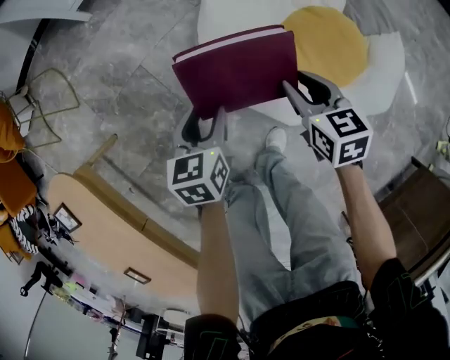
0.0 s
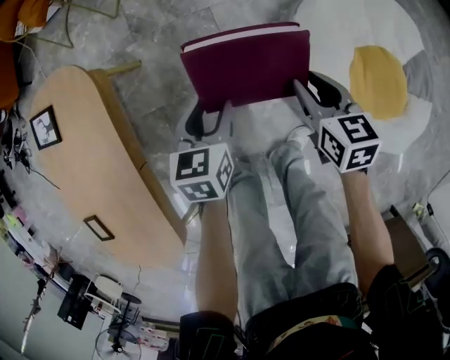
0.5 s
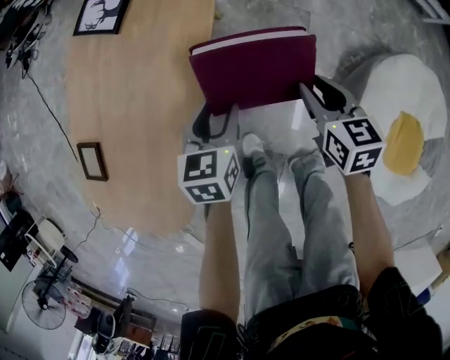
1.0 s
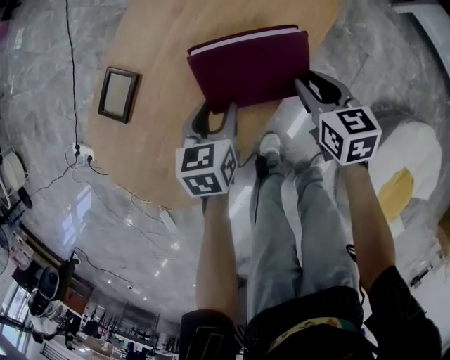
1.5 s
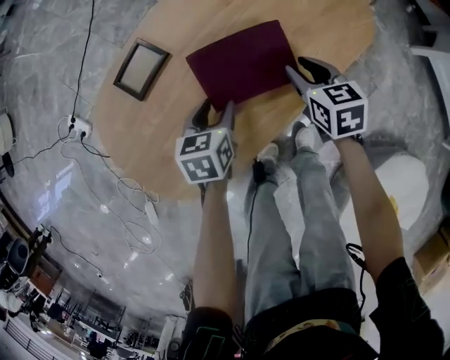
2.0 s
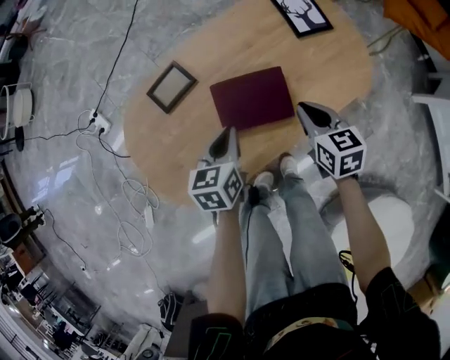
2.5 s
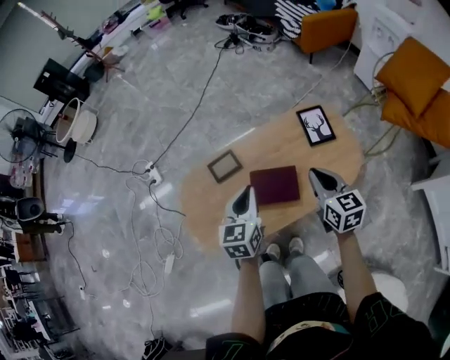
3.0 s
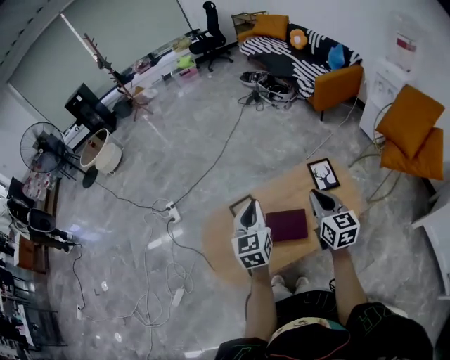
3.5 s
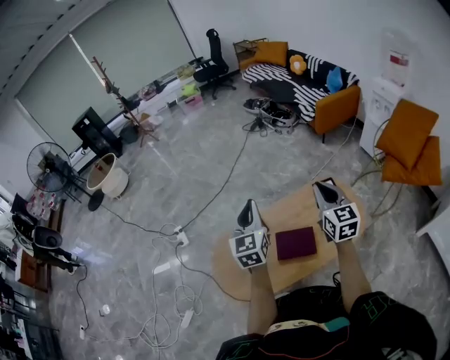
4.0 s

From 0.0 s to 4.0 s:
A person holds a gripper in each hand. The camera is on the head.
From 0.0 s to 2.0 s: Both grippers are carried some 80 cm. The right gripper changes its angle by about 80 degrees, while the left gripper changes its angle by approximately 80 degrees.
From 2.0 s to 4.0 s: Both grippers travel together upward, some 50 cm. The left gripper points its fingers roughly 40 degrees further upward, and closes up, while the right gripper points its fingers approximately 40 degrees further upward, and closes its fingers.

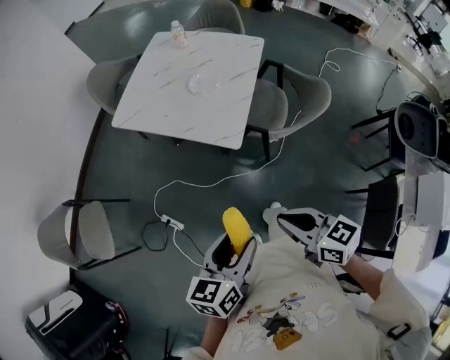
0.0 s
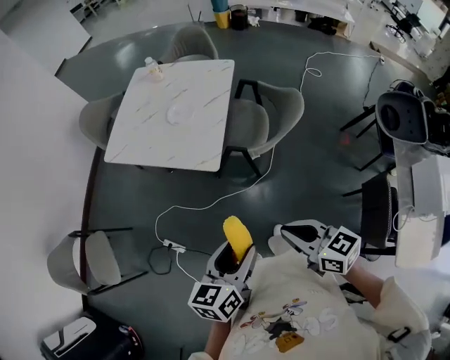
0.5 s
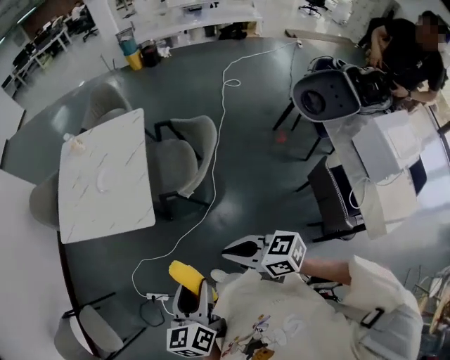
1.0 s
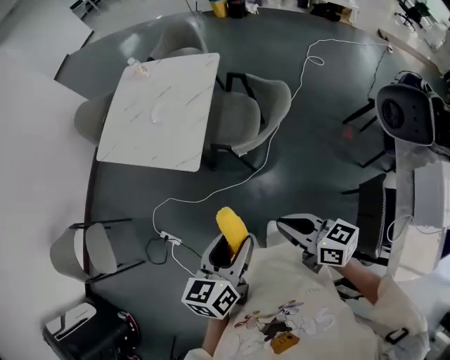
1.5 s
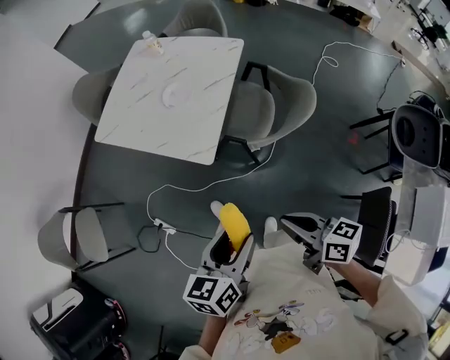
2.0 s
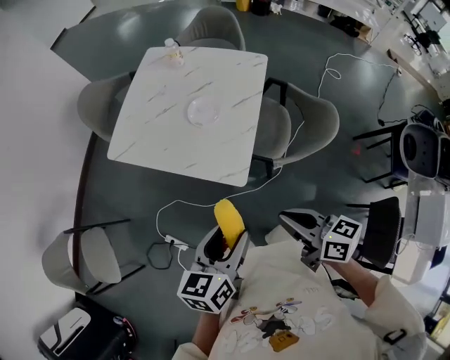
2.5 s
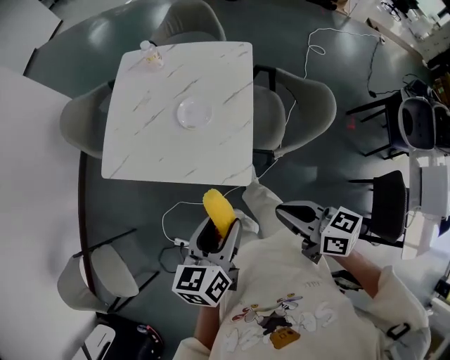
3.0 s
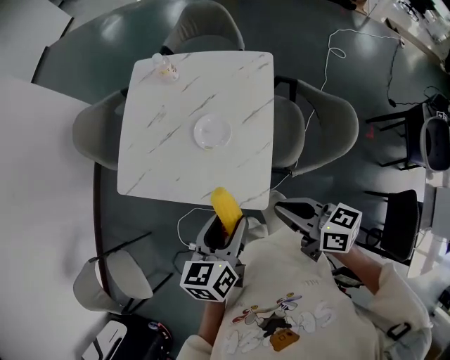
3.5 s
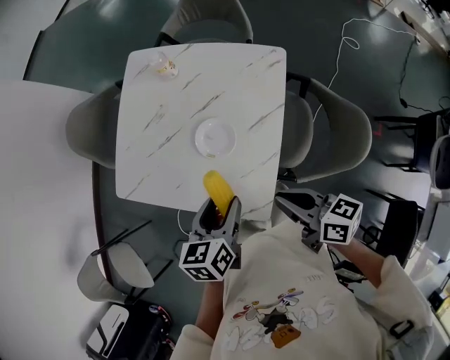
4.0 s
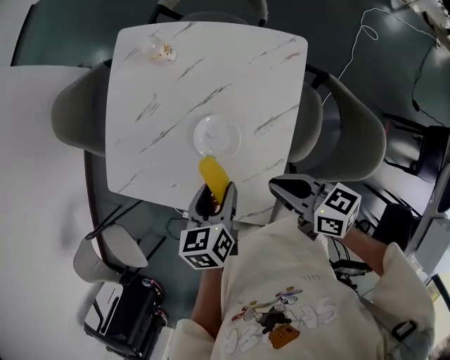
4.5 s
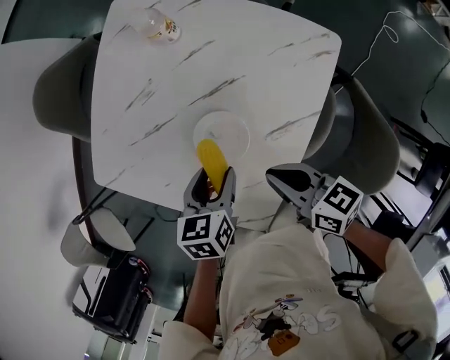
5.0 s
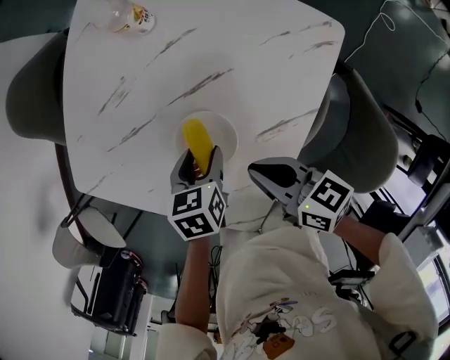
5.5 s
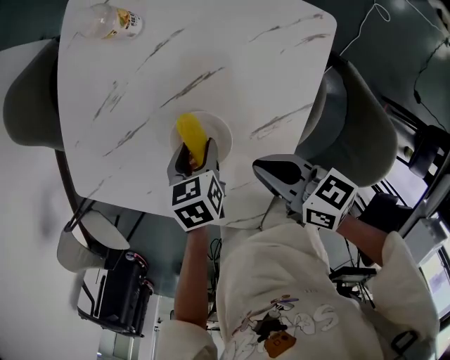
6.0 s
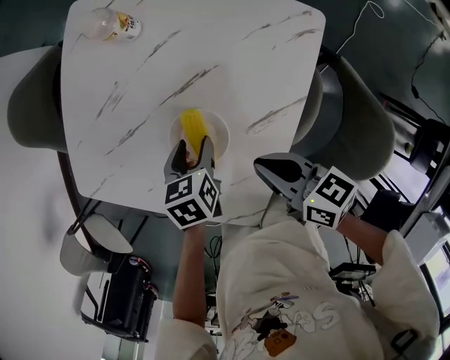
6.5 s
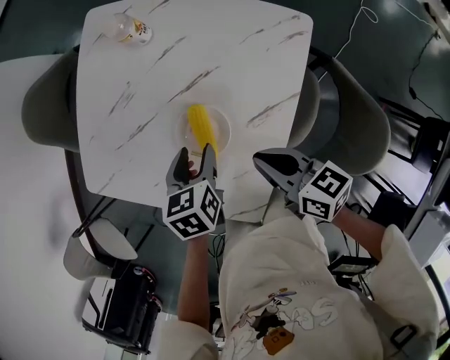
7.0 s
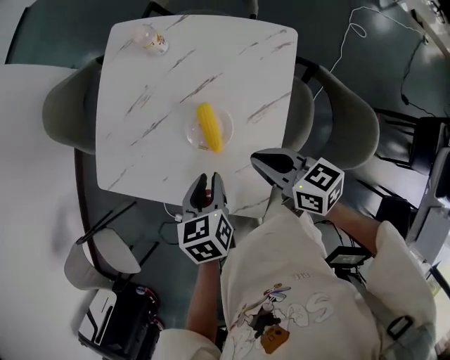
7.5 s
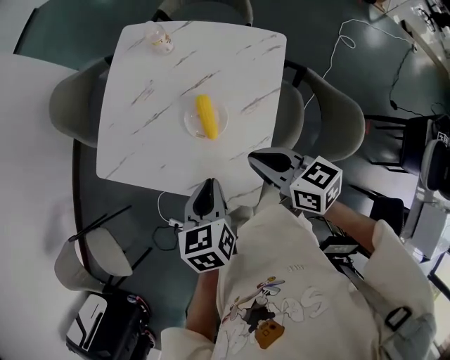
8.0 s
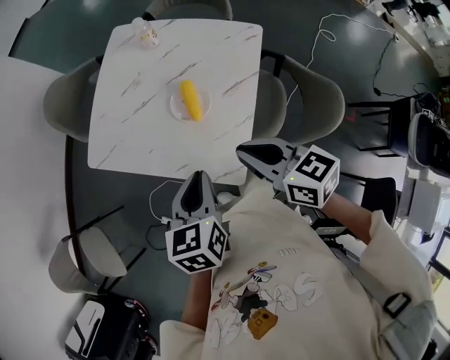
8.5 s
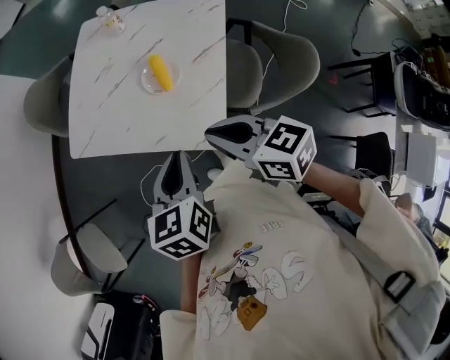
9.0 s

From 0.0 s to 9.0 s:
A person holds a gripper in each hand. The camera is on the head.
From 0.0 s to 2.0 s: Both grippers move to the right, about 15 cm.
From 2.0 s to 4.5 s: The pair of grippers is taken forward, about 50 cm. The left gripper swivels roughly 20 degrees.
From 4.5 s to 7.0 s: Both grippers move downward and forward, roughly 10 cm.
From 7.0 s to 9.0 s: The right gripper travels backward, upward and to the left by roughly 30 cm. Meanwhile the left gripper goes some 35 cm backward and upward, rotates some 20 degrees, and closes.

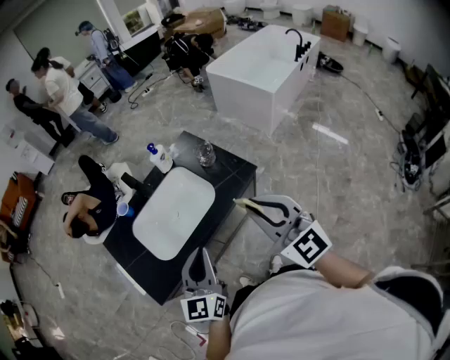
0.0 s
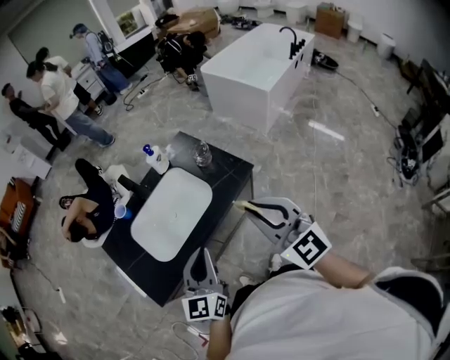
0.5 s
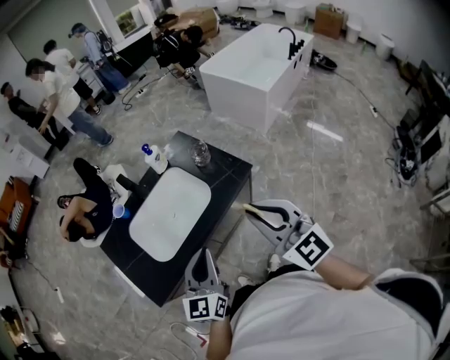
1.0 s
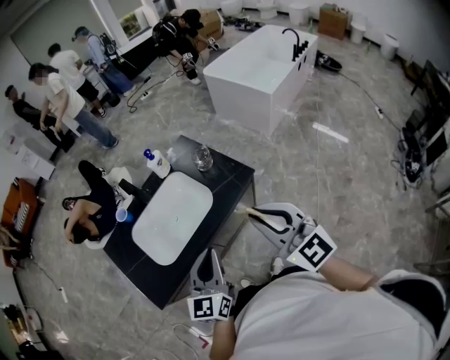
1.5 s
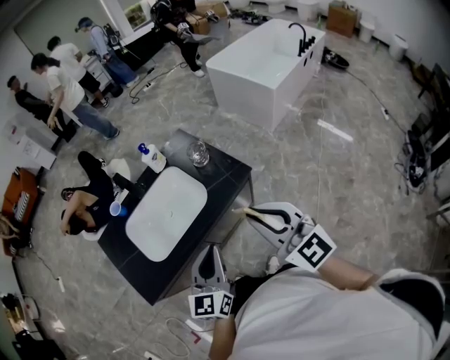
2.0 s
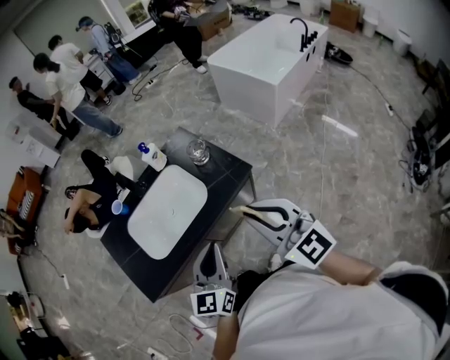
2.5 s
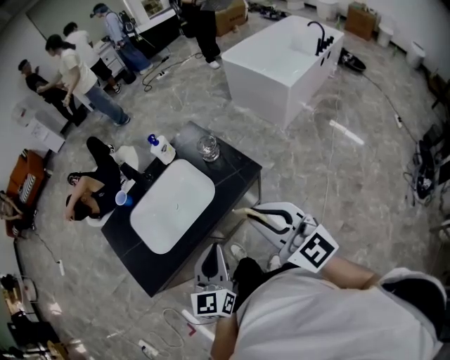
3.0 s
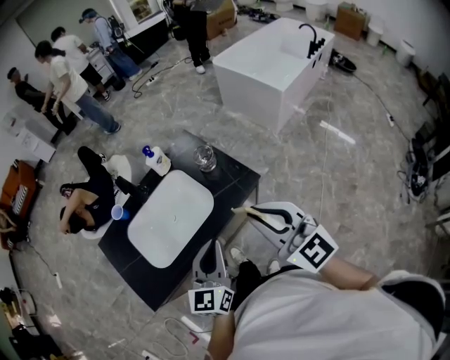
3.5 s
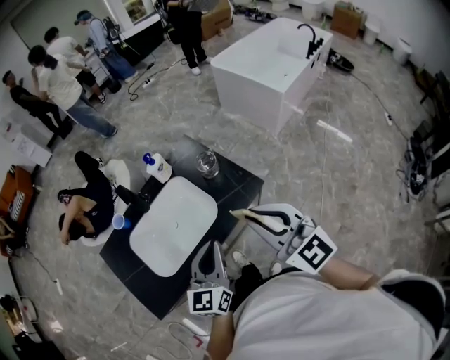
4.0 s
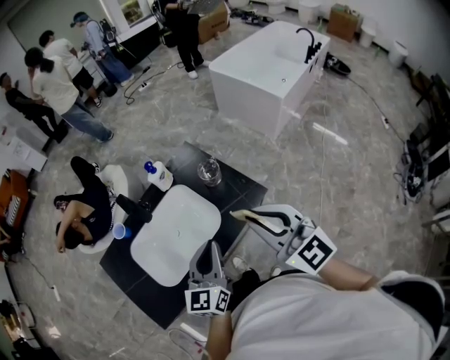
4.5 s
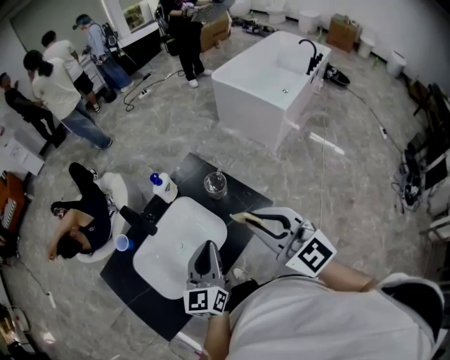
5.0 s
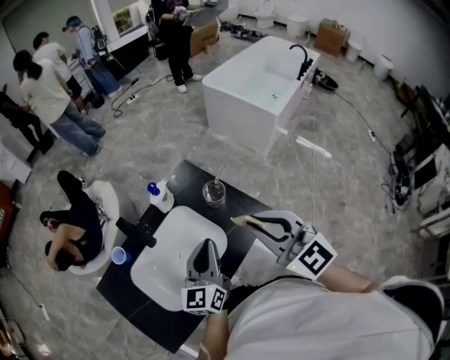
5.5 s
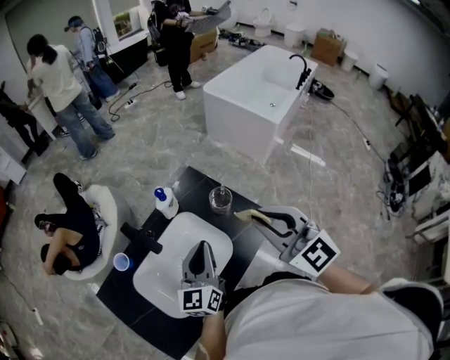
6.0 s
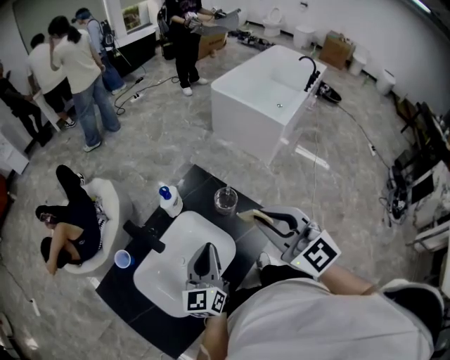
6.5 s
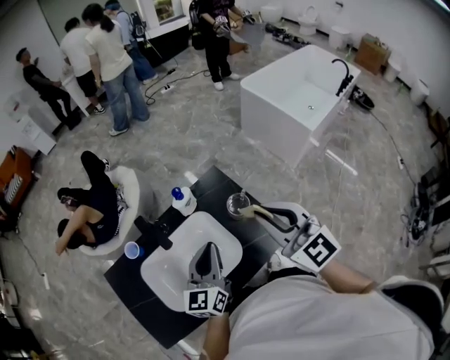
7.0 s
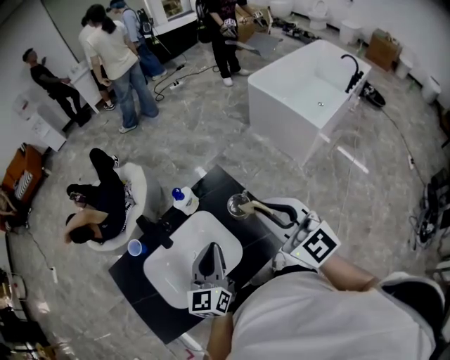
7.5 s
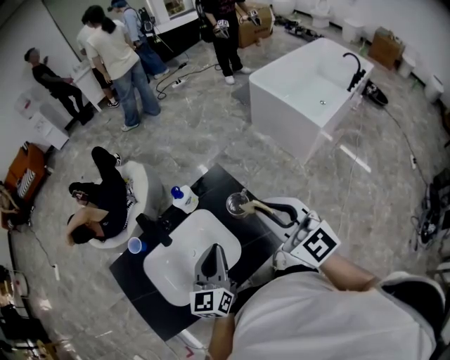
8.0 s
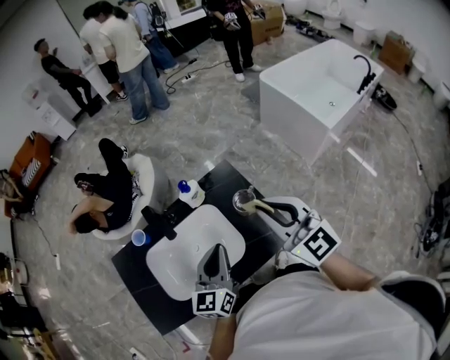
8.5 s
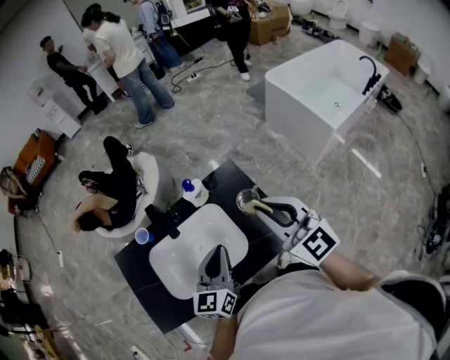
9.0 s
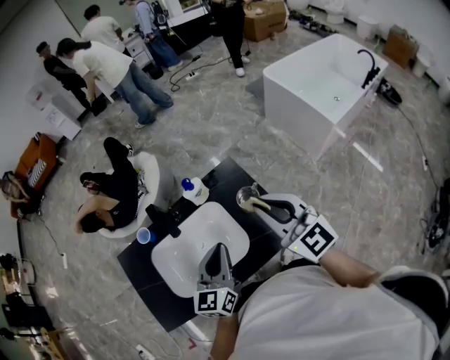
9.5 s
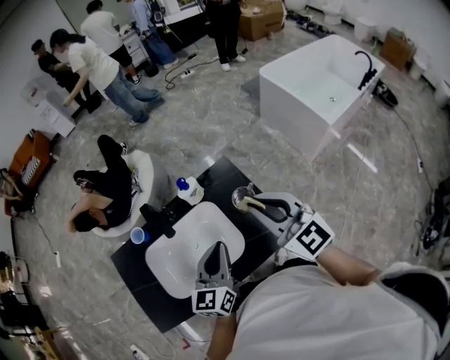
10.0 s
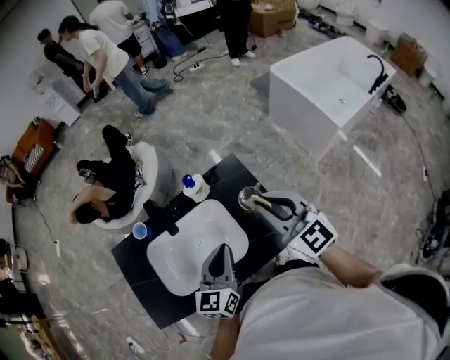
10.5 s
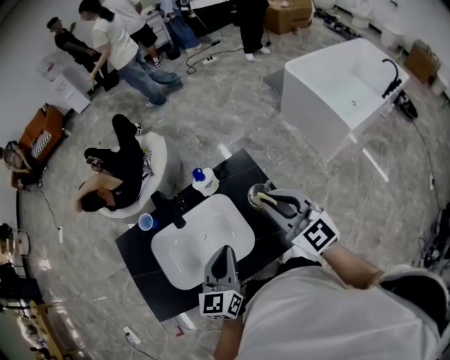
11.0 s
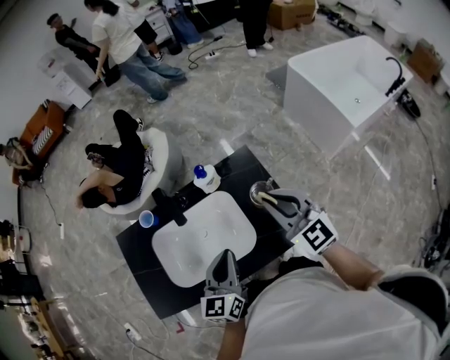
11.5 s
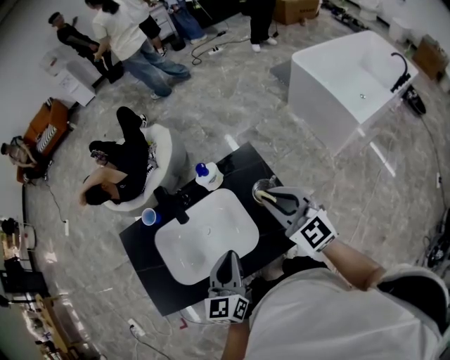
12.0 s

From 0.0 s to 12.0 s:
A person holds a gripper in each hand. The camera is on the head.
From 0.0 s to 2.0 s: The right gripper changes place by some 5 cm. The left gripper is displaced to the right by approximately 5 cm.
From 2.0 s to 4.0 s: Both grippers travel together forward, about 10 cm.
From 4.0 s to 6.0 s: The left gripper goes some 20 cm forward and to the left. The right gripper goes about 15 cm forward.
From 6.0 s to 8.0 s: The right gripper heads forward and to the right, covering about 10 cm.
From 8.0 s to 10.0 s: The grippers move only a little.
From 10.0 s to 12.0 s: The right gripper travels downward by approximately 10 cm.

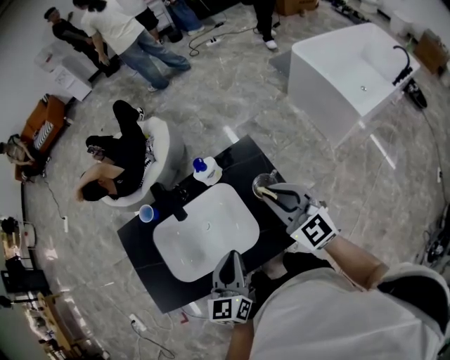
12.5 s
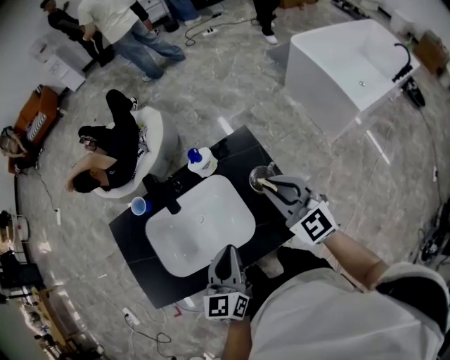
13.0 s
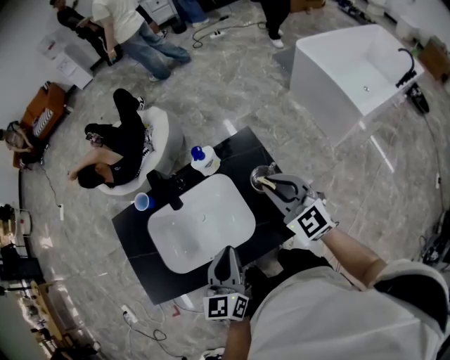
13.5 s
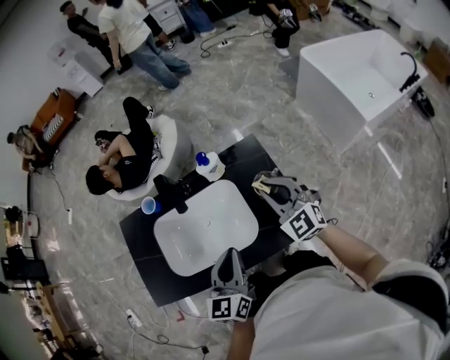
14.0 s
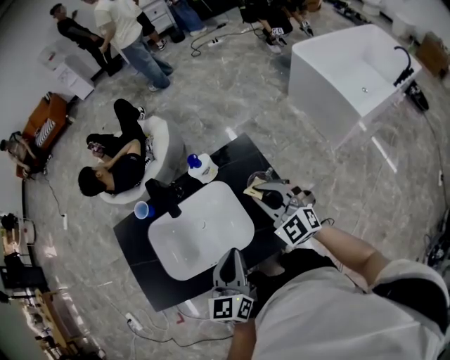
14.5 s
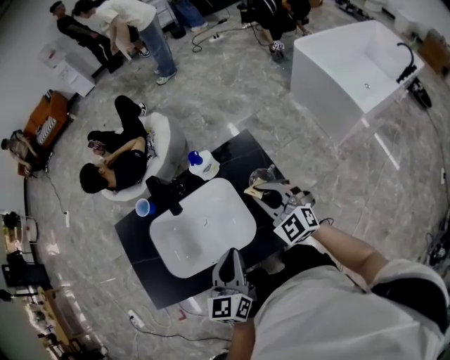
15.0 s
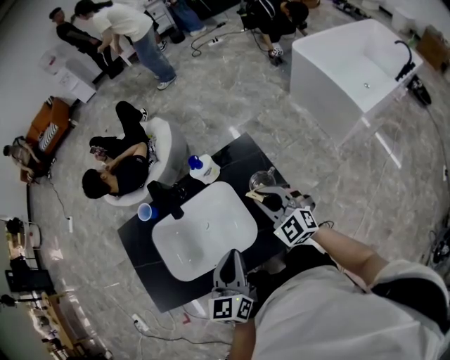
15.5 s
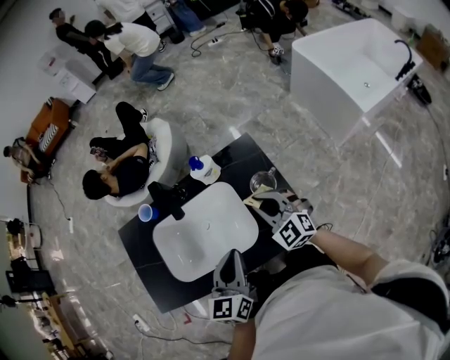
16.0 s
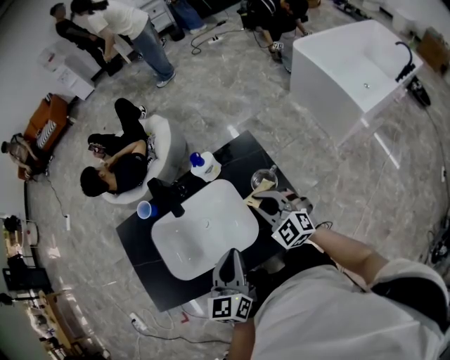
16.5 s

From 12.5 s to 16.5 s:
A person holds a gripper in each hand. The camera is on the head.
From 12.5 s to 14.5 s: The right gripper goes some 5 cm downward.
From 14.5 s to 16.5 s: The right gripper moves downward, some 5 cm.
